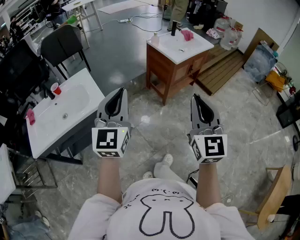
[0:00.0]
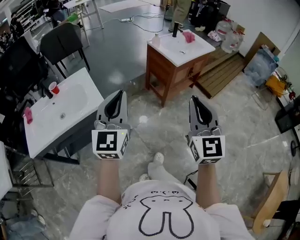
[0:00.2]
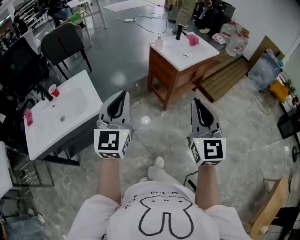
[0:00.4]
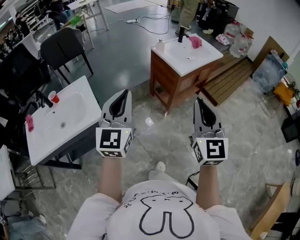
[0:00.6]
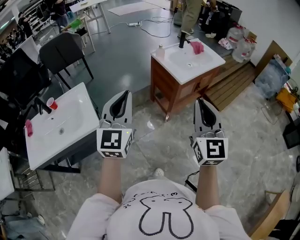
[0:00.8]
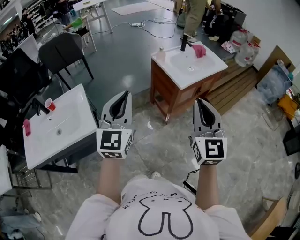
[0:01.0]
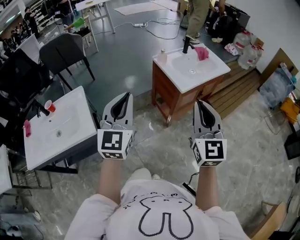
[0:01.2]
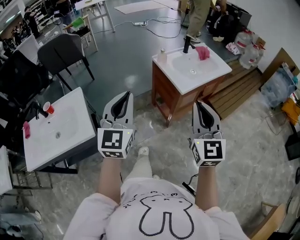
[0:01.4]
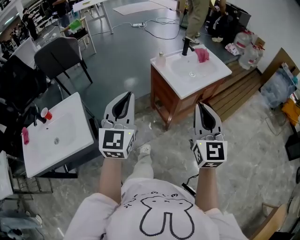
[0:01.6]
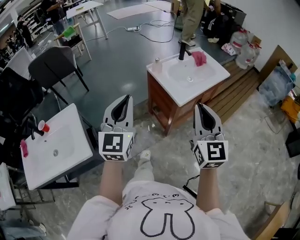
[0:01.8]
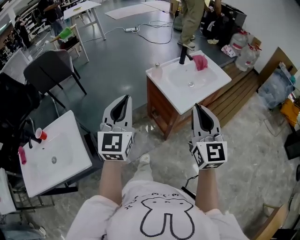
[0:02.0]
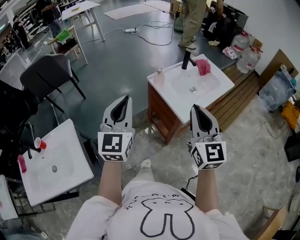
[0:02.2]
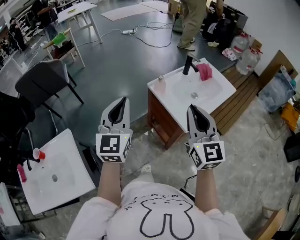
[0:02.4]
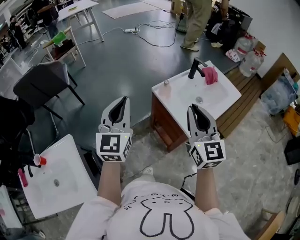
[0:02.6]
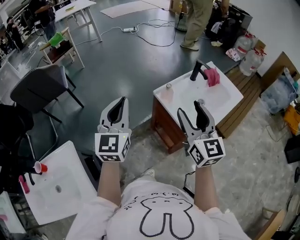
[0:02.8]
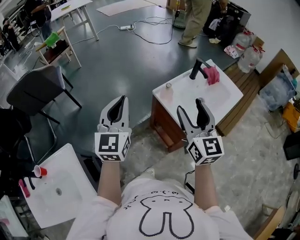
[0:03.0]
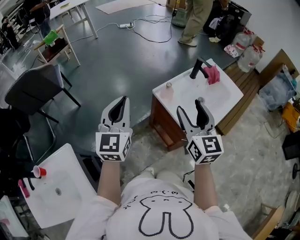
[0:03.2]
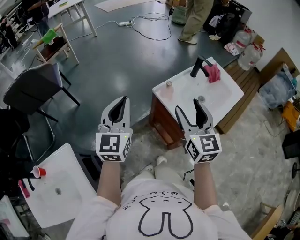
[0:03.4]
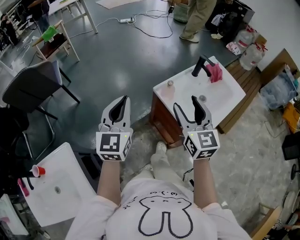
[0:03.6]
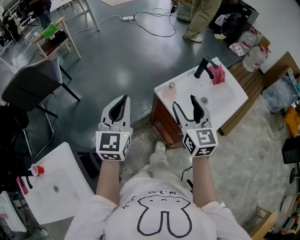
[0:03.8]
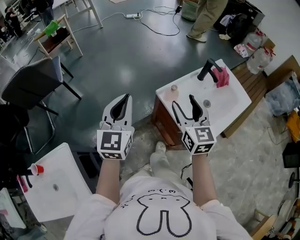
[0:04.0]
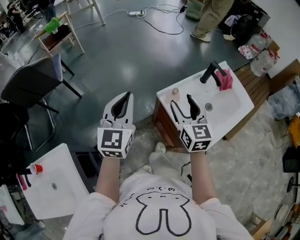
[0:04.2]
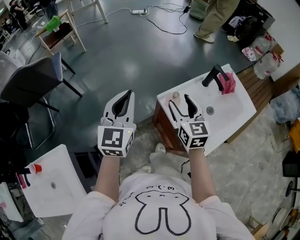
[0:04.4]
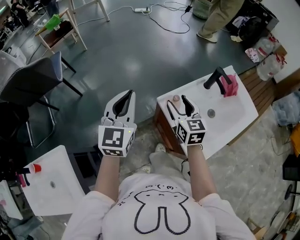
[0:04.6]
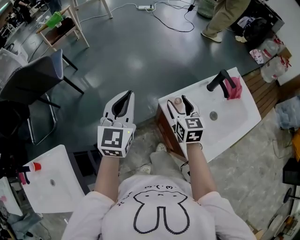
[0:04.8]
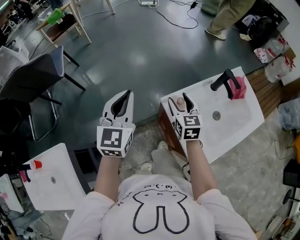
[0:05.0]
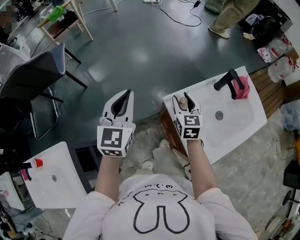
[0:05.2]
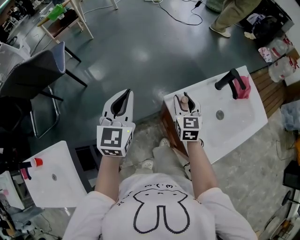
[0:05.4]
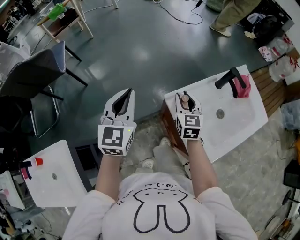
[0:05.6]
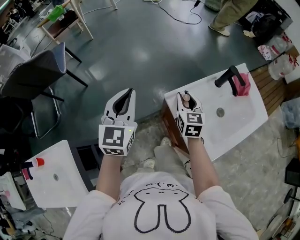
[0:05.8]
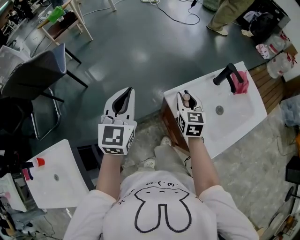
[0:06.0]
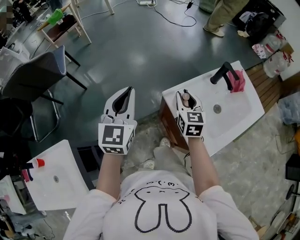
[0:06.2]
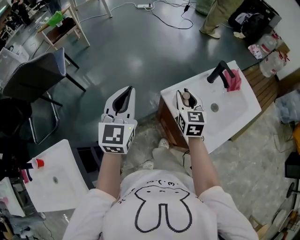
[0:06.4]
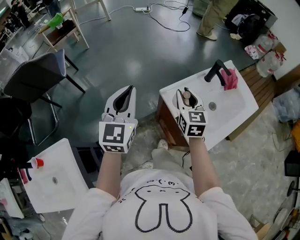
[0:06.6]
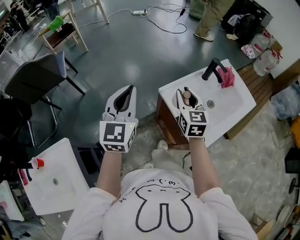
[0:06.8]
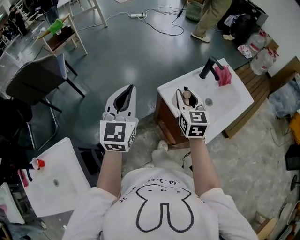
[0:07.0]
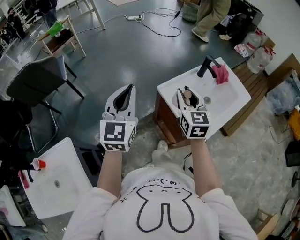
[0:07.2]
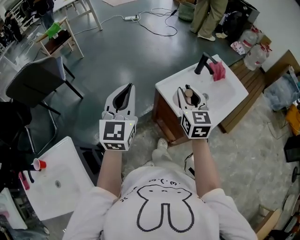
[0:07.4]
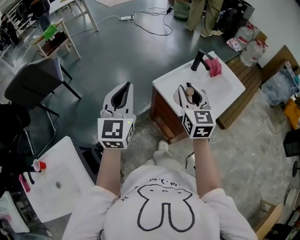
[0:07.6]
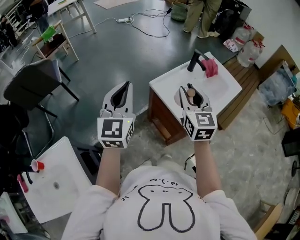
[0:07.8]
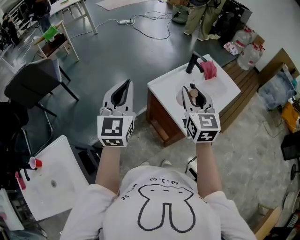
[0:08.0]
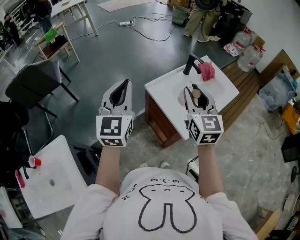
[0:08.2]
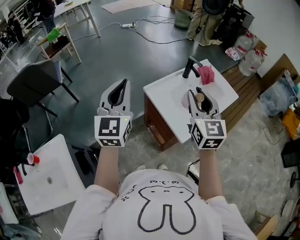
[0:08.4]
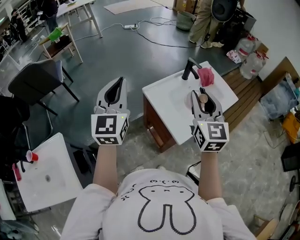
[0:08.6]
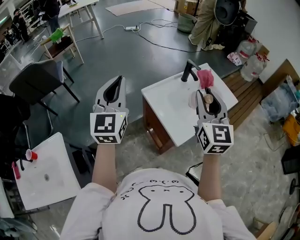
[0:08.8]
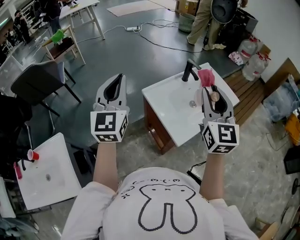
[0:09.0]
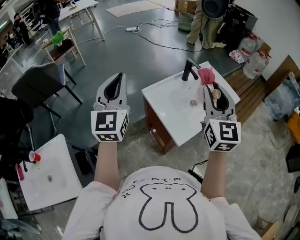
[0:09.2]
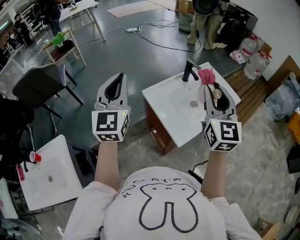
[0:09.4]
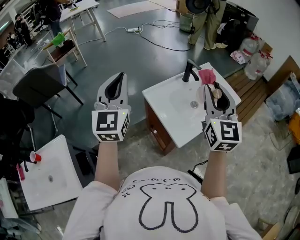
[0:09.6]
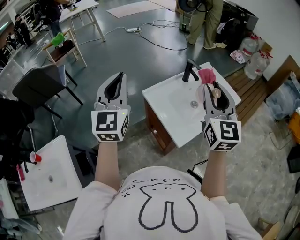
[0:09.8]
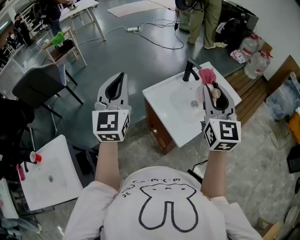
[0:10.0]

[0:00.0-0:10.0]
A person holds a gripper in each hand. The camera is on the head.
0:00.0 to 0:01.4: The two grippers go roughly 30 cm forward.
0:01.4 to 0:02.8: The two grippers go roughly 35 cm forward. The right gripper opens.
0:02.8 to 0:04.2: The left gripper heads forward and downward, covering approximately 10 cm; the right gripper heads forward and downward, covering roughly 20 cm.
0:04.2 to 0:05.8: The right gripper moves downward and forward, some 15 cm, and closes; the left gripper heads forward, covering roughly 5 cm.
0:05.8 to 0:07.2: The right gripper is displaced upward and backward by roughly 20 cm. Meanwhile the left gripper goes roughly 15 cm backward and upward.
0:07.2 to 0:08.6: The left gripper goes approximately 10 cm upward and to the right. The right gripper goes some 20 cm to the right, upward and backward.
0:08.6 to 0:10.0: The right gripper shifts some 5 cm to the right.

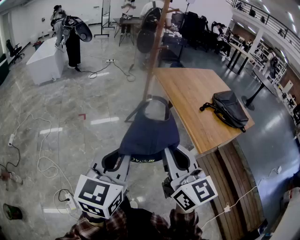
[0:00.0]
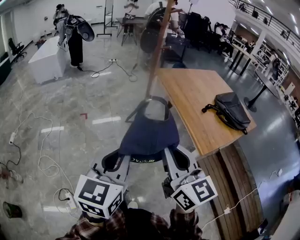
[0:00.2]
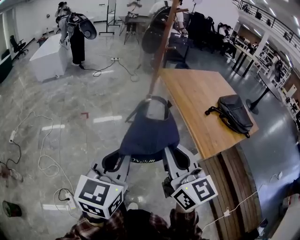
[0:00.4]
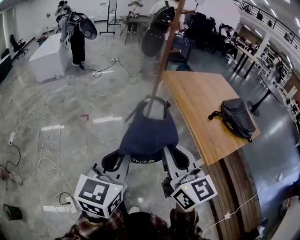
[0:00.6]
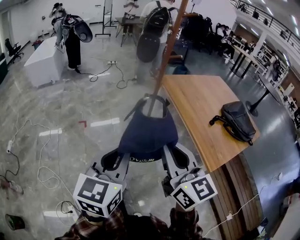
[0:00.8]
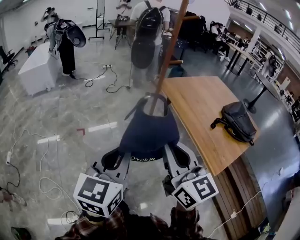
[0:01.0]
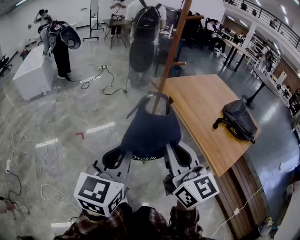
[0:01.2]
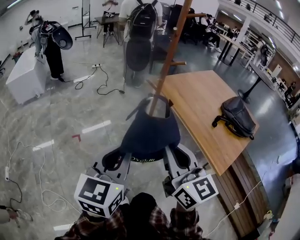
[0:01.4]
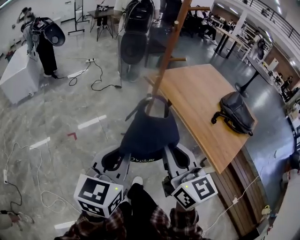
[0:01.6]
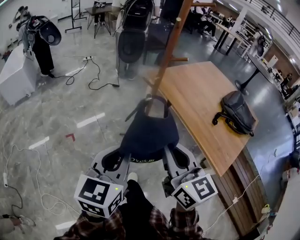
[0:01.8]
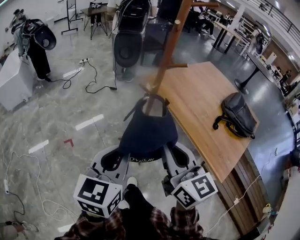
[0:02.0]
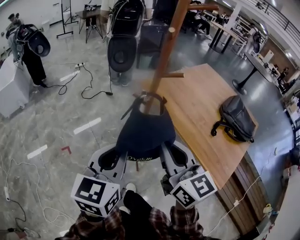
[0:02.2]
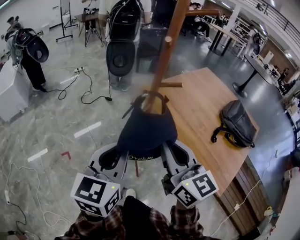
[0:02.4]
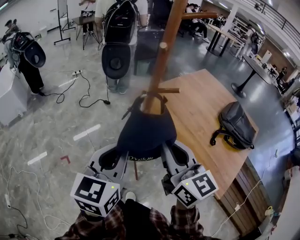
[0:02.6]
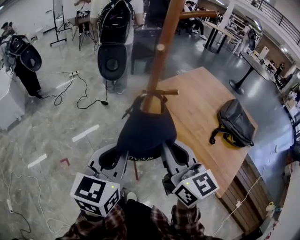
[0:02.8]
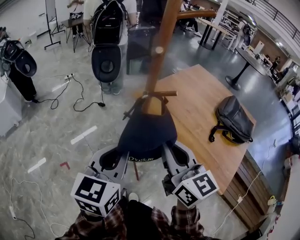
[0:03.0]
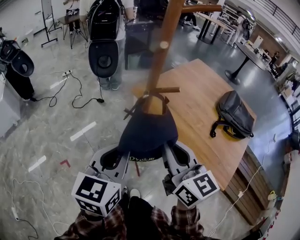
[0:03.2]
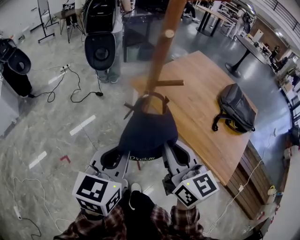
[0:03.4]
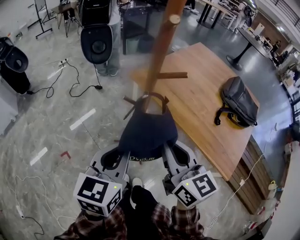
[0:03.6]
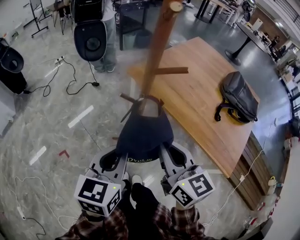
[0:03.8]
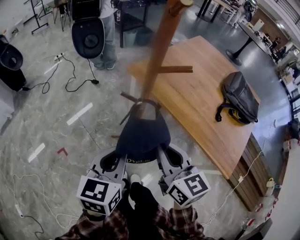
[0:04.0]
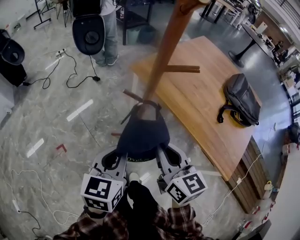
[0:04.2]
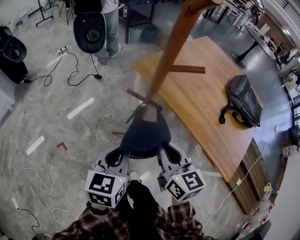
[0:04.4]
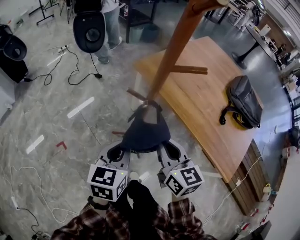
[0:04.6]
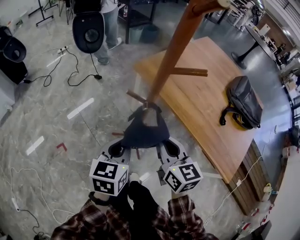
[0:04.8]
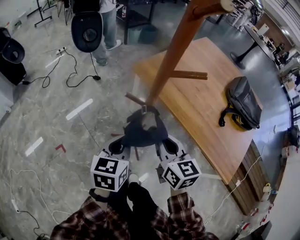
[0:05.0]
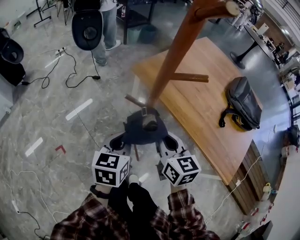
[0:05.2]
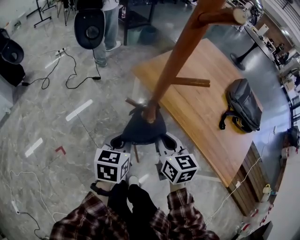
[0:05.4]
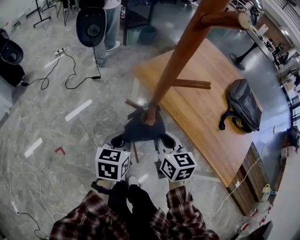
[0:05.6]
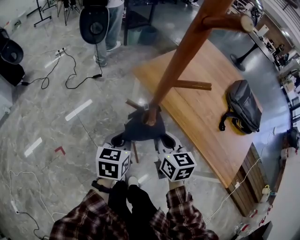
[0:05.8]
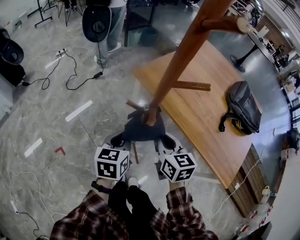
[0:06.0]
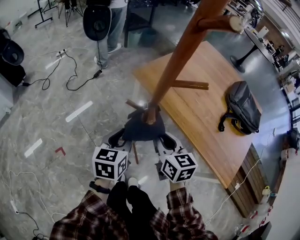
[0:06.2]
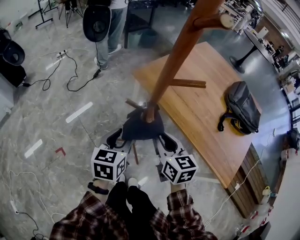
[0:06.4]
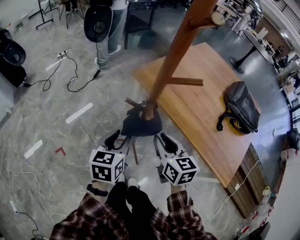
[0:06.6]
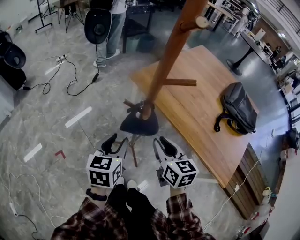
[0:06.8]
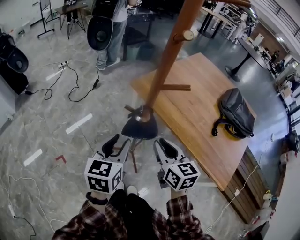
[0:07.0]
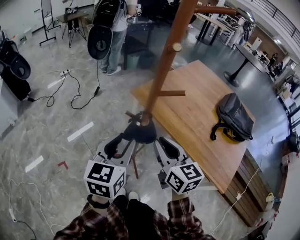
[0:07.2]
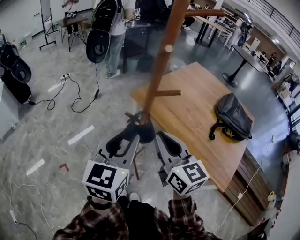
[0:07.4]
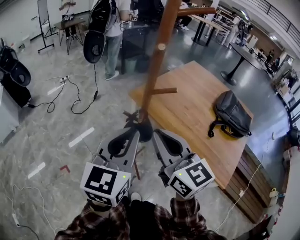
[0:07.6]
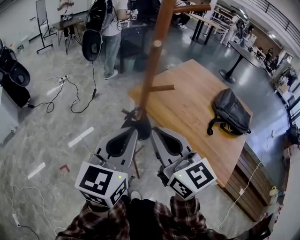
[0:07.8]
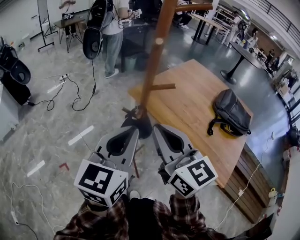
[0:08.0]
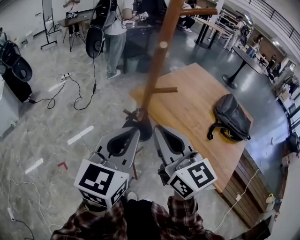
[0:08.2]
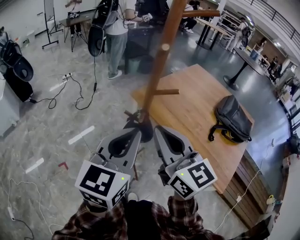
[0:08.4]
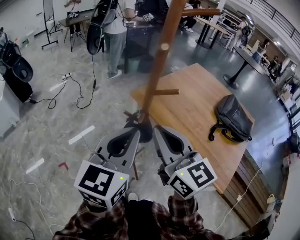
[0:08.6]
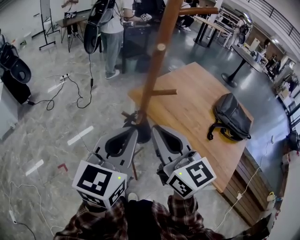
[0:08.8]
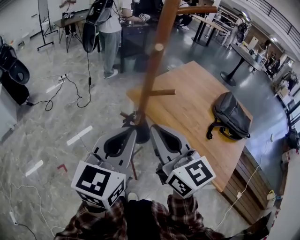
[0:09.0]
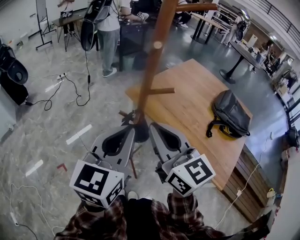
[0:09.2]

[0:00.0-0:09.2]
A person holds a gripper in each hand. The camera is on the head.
0:00.0 to 0:01.6: The grippers both shift forward by some 35 cm.
0:01.6 to 0:03.0: Both grippers travel together forward, roughly 25 cm.
0:03.0 to 0:04.6: Both grippers move downward, roughly 20 cm.
0:04.6 to 0:06.2: Both grippers move forward, roughly 10 cm.
0:06.2 to 0:07.6: The right gripper shifts roughly 25 cm upward and backward, and changes its angle by about 30 degrees, while the left gripper shifts about 25 cm upward, and changes its angle by about 30 degrees.
0:07.6 to 0:09.2: The grippers make only small movements.

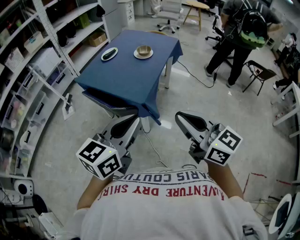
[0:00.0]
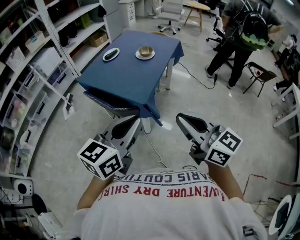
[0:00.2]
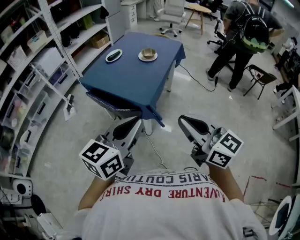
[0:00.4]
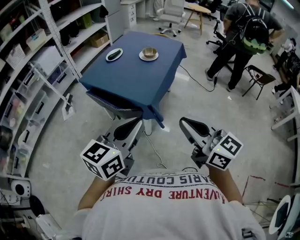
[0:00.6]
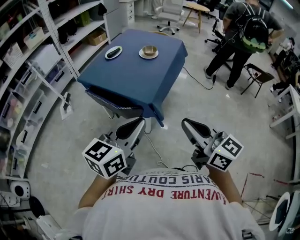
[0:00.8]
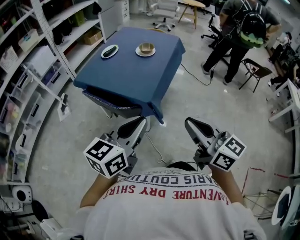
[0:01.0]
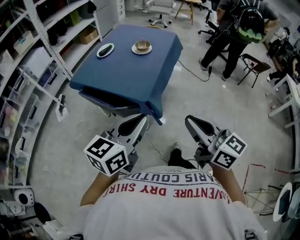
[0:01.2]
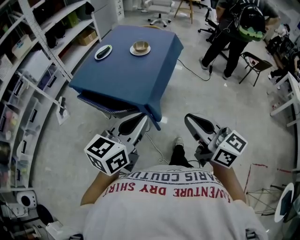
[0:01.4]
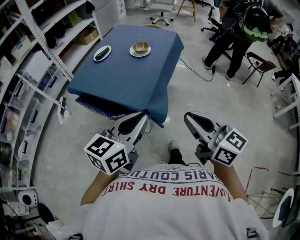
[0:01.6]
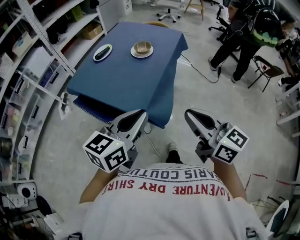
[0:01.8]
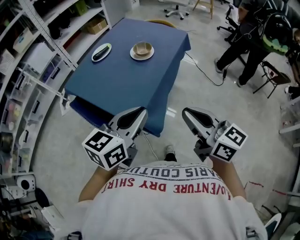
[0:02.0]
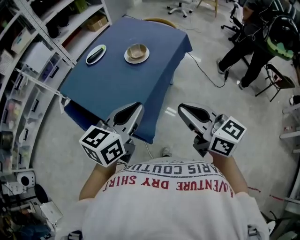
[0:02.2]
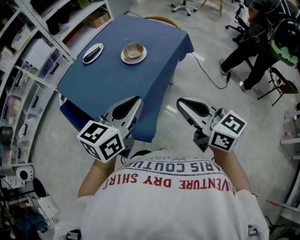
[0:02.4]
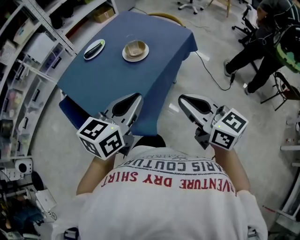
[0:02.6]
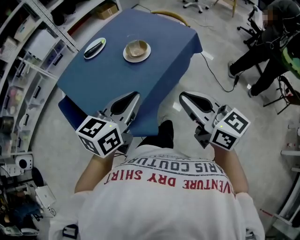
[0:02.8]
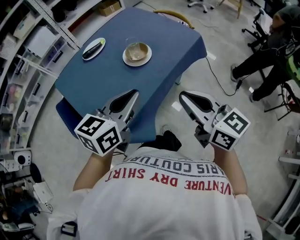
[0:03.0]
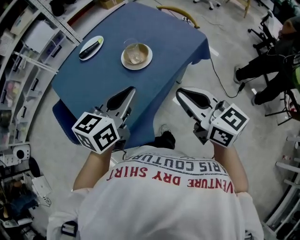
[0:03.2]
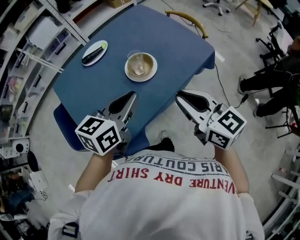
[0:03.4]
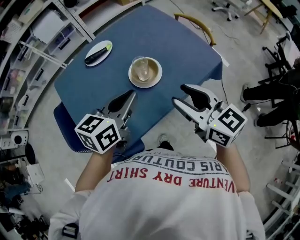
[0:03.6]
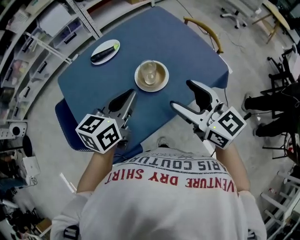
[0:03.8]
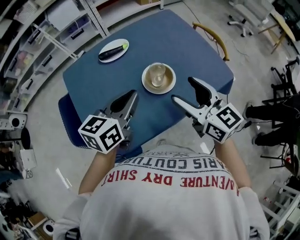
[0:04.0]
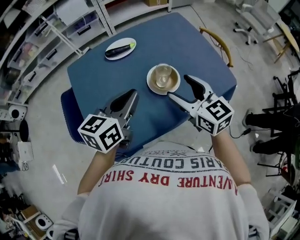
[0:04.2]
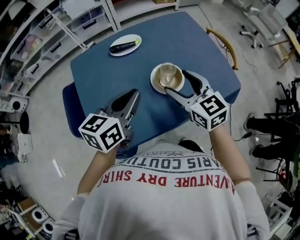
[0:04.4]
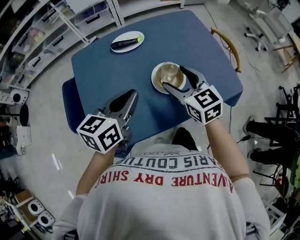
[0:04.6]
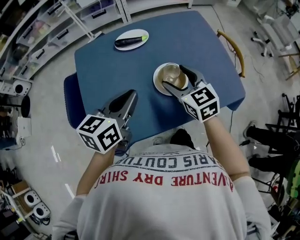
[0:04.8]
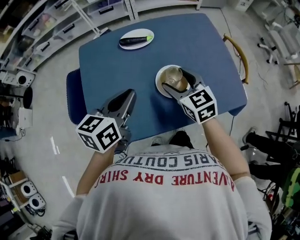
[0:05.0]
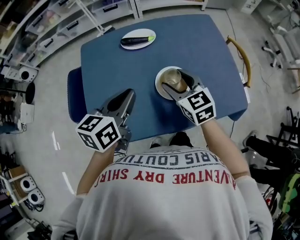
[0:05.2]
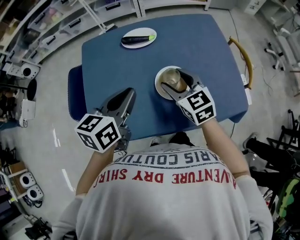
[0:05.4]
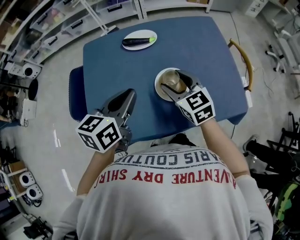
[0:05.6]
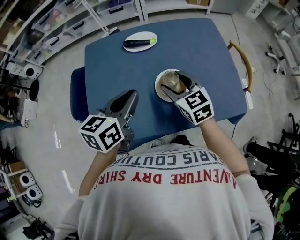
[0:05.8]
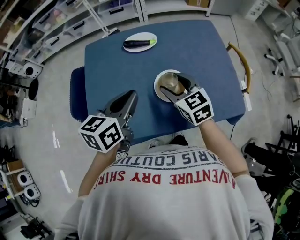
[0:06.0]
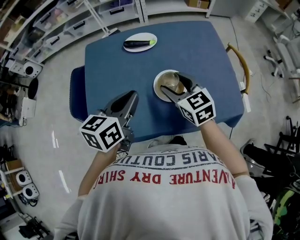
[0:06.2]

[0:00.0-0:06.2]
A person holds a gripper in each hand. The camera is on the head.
0:00.0 to 0:01.6: The left gripper is displaced forward and downward by roughly 10 cm. Meanwhile the right gripper moves forward, about 5 cm.
0:01.6 to 0:03.2: The two grippers travel together, forward and to the right, about 40 cm. The left gripper turns by approximately 30 degrees. The right gripper rotates some 30 degrees.
0:03.2 to 0:04.6: The right gripper travels forward by approximately 25 cm, turns by roughly 30 degrees, and opens. The left gripper goes about 15 cm forward and to the left, and swivels roughly 30 degrees.
0:04.6 to 0:06.2: The grippers stay close to where they were, moving slightly.
